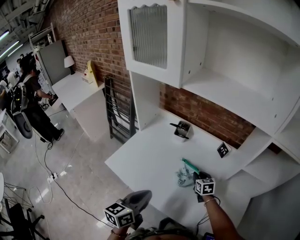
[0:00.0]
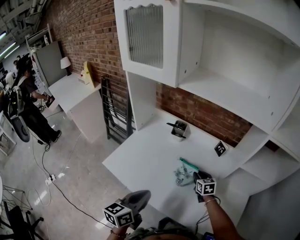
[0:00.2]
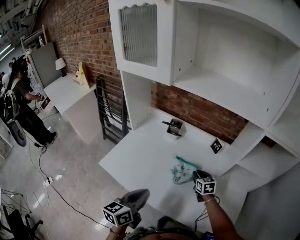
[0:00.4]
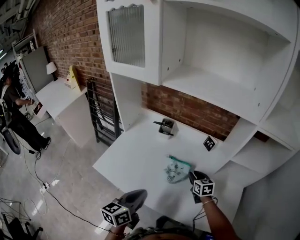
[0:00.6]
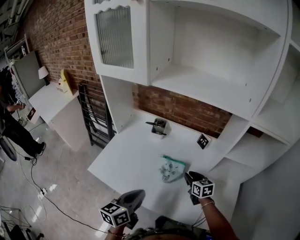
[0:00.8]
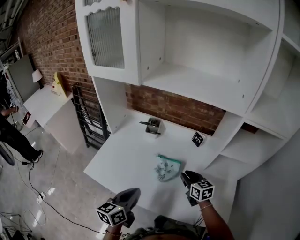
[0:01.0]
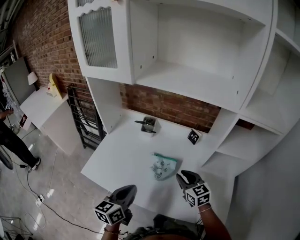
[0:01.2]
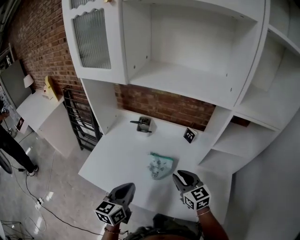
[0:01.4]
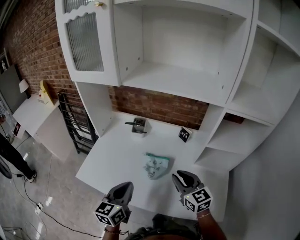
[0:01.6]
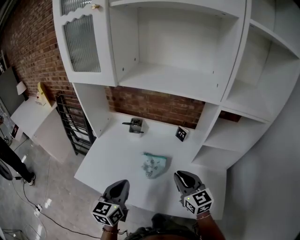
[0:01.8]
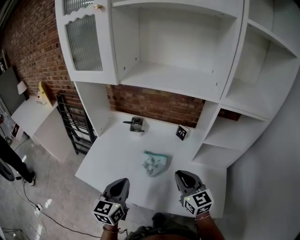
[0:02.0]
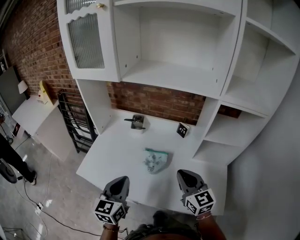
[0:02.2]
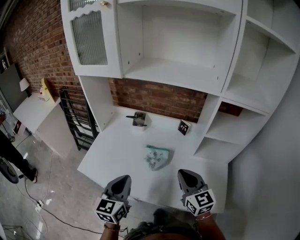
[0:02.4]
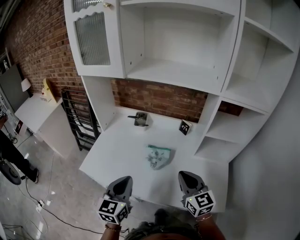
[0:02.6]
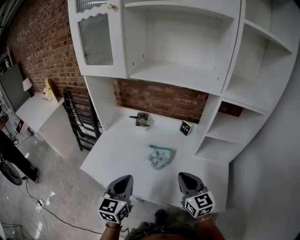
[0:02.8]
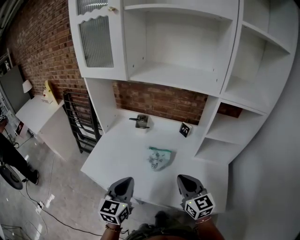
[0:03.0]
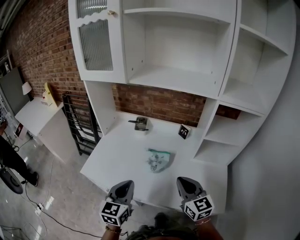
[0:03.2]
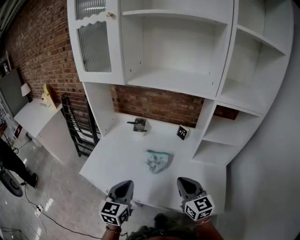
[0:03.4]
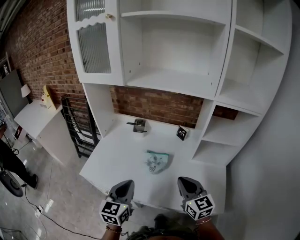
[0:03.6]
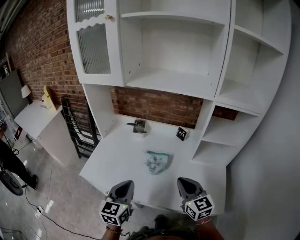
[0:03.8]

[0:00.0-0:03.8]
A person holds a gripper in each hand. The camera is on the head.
0:00.0 to 0:01.2: The right gripper goes some 15 cm upward and backward.
0:01.2 to 0:02.6: The right gripper shifts approximately 15 cm backward and upward. The left gripper shifts by approximately 5 cm, and swivels about 20 degrees.
0:02.6 to 0:03.8: The grippers move only a little.

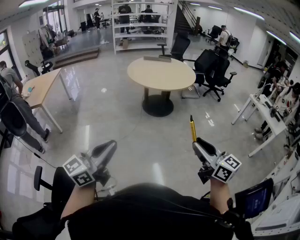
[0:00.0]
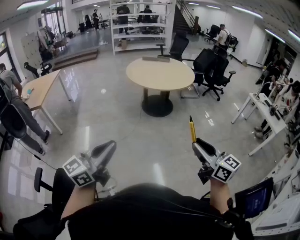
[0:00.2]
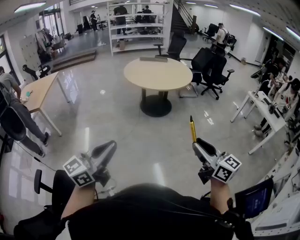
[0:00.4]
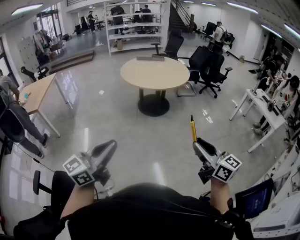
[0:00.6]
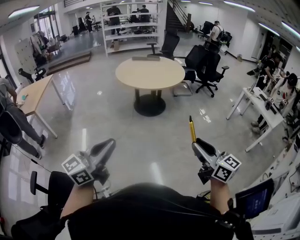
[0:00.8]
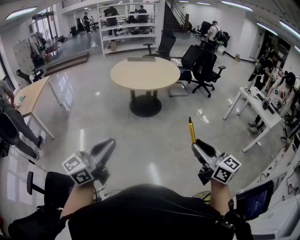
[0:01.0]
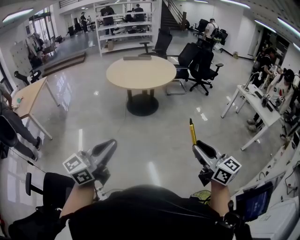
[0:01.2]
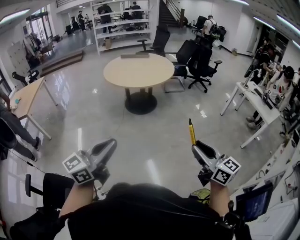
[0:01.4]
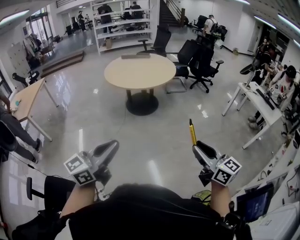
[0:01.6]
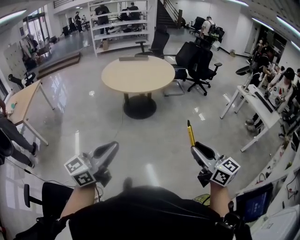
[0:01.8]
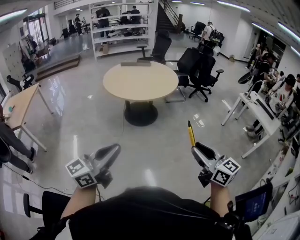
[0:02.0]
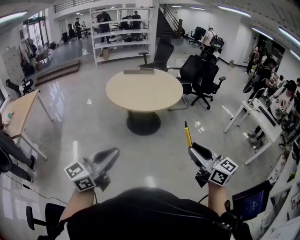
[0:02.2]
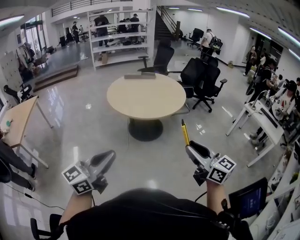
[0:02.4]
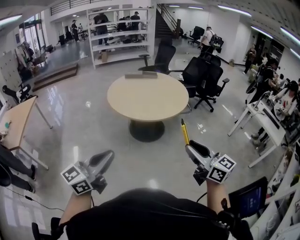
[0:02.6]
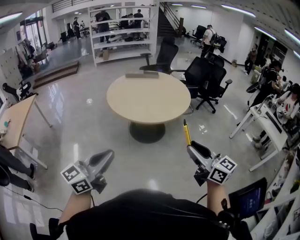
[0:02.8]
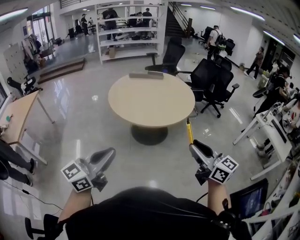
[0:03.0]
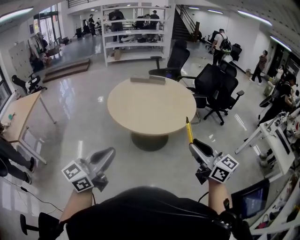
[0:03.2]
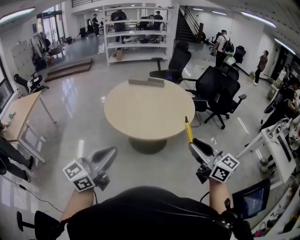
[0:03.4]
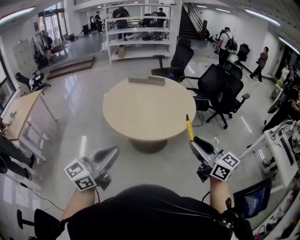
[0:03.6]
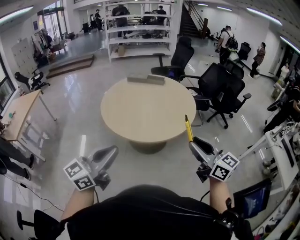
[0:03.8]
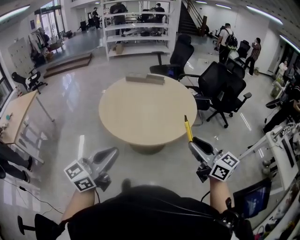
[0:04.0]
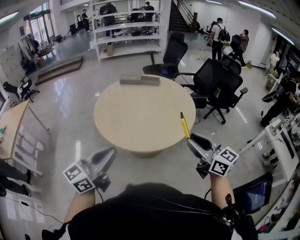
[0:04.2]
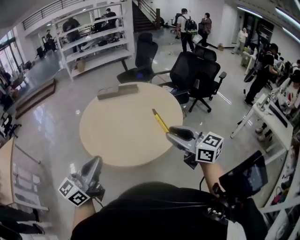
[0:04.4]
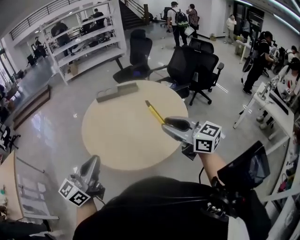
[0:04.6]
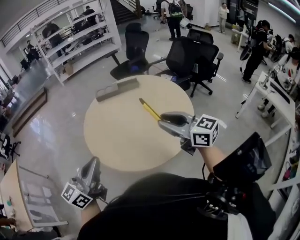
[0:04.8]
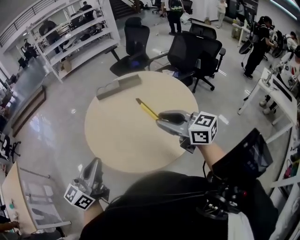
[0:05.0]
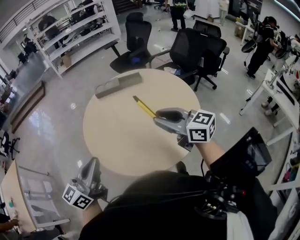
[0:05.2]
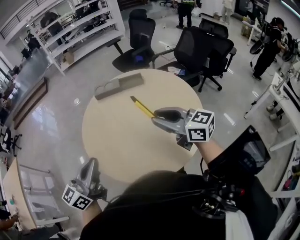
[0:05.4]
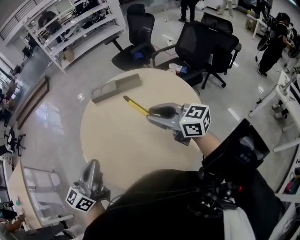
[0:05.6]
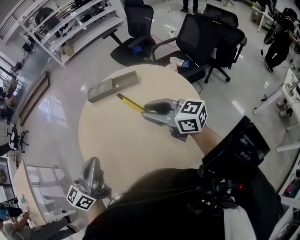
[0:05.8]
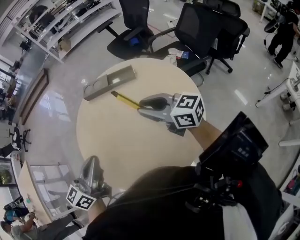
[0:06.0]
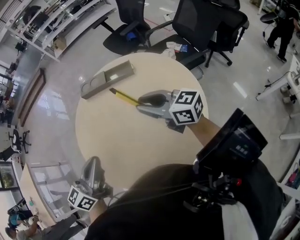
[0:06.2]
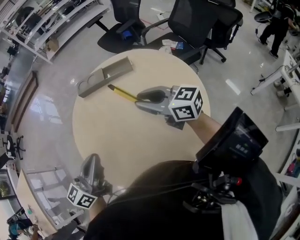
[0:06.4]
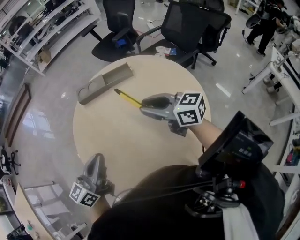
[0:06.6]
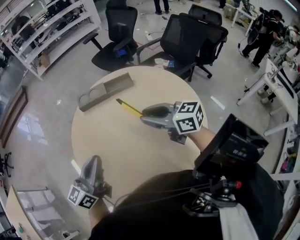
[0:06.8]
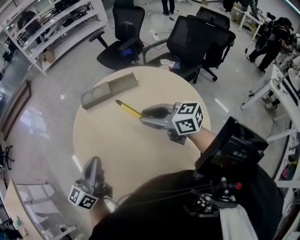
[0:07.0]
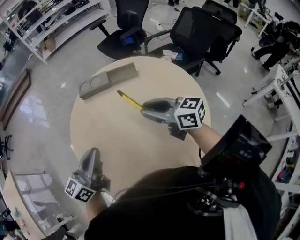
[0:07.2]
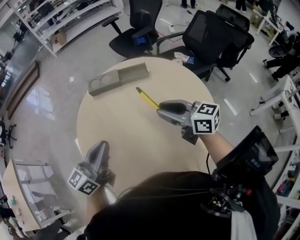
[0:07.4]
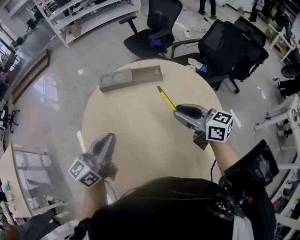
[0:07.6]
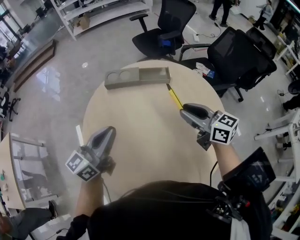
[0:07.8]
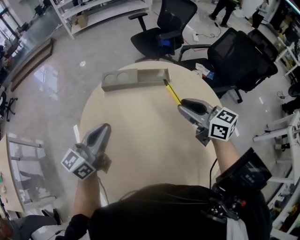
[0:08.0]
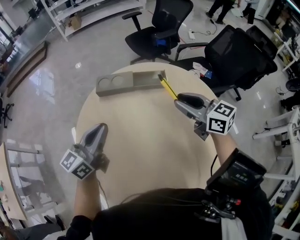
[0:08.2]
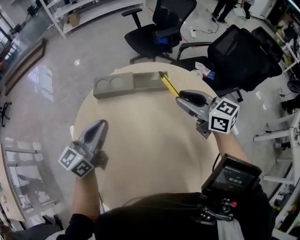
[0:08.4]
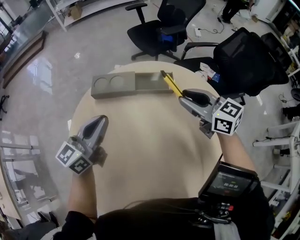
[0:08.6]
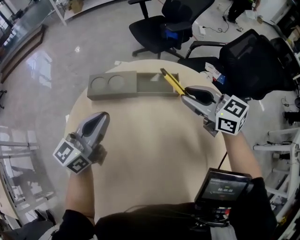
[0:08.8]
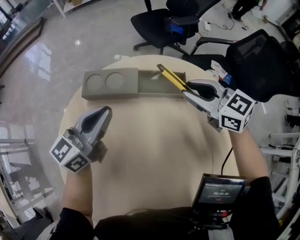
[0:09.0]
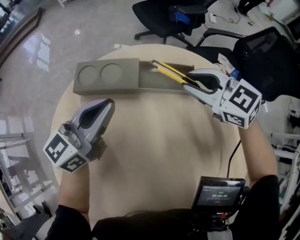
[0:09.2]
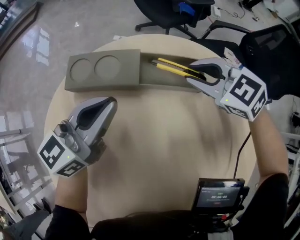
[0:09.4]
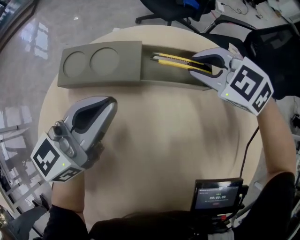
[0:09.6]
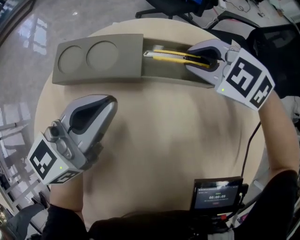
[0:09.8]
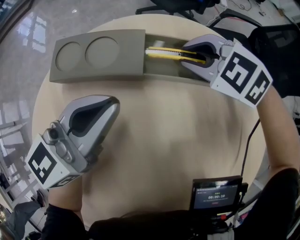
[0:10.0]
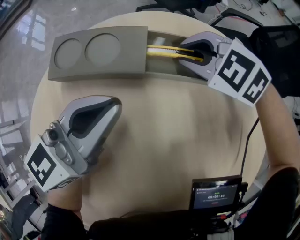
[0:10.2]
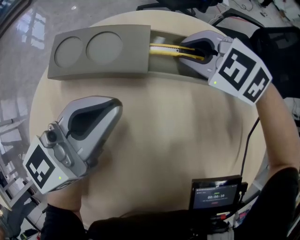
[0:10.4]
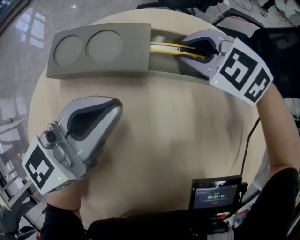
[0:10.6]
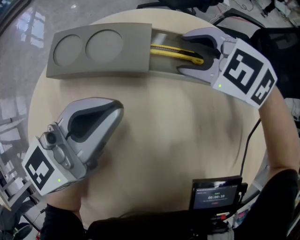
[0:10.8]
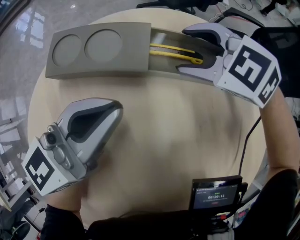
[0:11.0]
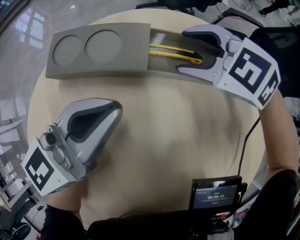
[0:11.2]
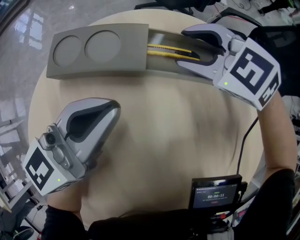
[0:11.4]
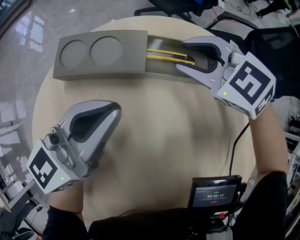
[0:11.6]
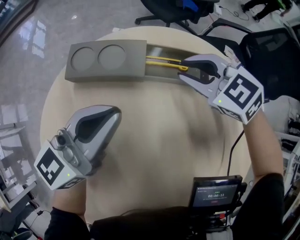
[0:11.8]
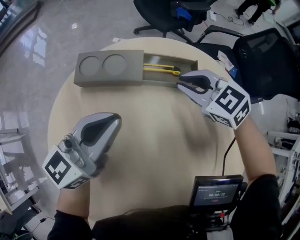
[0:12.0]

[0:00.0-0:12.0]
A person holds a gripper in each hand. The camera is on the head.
0:00.0 to 0:01.6: The right gripper shifts about 20 cm to the right; the left gripper goes about 25 cm to the right and forward.
0:01.6 to 0:03.0: The two grippers travel together, forward and to the left, some 50 cm.
0:03.0 to 0:04.4: Both grippers travel together forward, some 35 cm.
0:04.4 to 0:06.0: Both grippers are carried forward, roughly 40 cm.
0:06.0 to 0:07.6: The right gripper heads to the left, covering some 5 cm. Meanwhile the left gripper goes roughly 15 cm forward, to the left and downward.
0:07.6 to 0:09.0: The grippers both shift forward and downward by roughly 35 cm. The right gripper changes its angle by approximately 30 degrees.
0:09.0 to 0:10.4: The left gripper is displaced downward by approximately 10 cm. Meanwhile the right gripper goes roughly 20 cm downward and forward, and points its fingers roughly 30 degrees further downward.
0:10.4 to 0:12.0: The right gripper shifts some 10 cm backward and upward, swivels about 20 degrees, and opens, then closes again. Meanwhile the left gripper goes about 10 cm upward and backward.

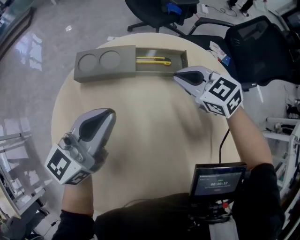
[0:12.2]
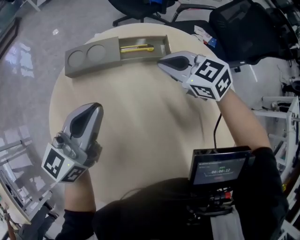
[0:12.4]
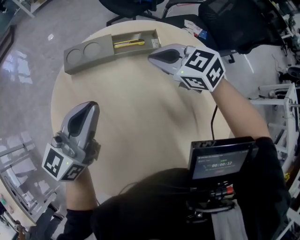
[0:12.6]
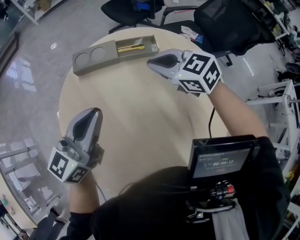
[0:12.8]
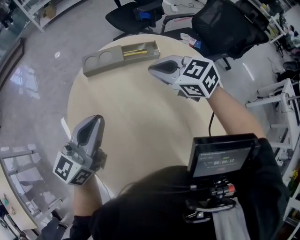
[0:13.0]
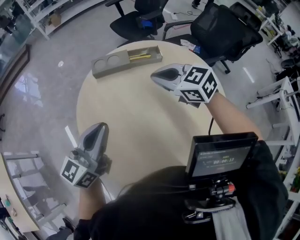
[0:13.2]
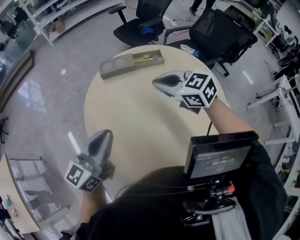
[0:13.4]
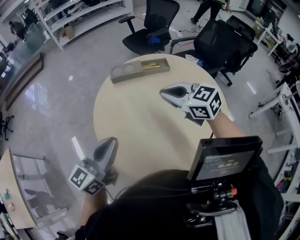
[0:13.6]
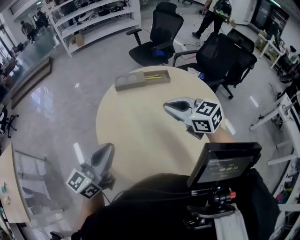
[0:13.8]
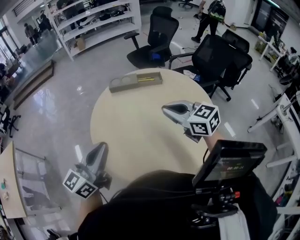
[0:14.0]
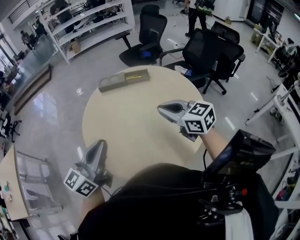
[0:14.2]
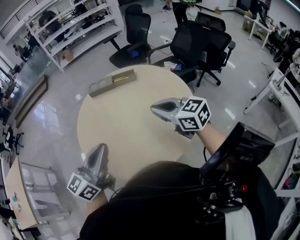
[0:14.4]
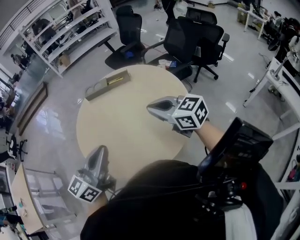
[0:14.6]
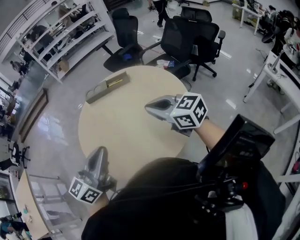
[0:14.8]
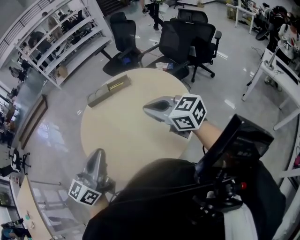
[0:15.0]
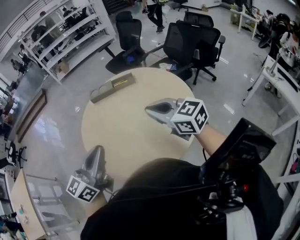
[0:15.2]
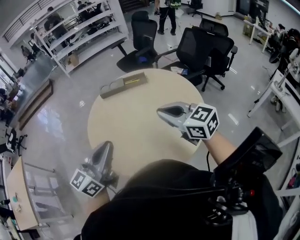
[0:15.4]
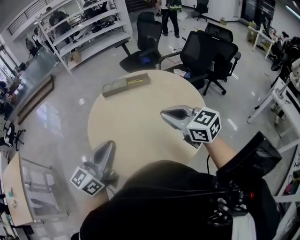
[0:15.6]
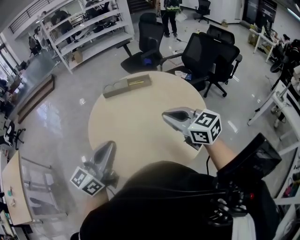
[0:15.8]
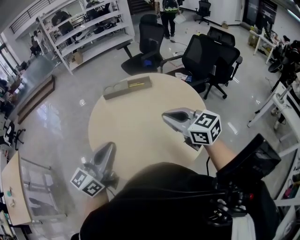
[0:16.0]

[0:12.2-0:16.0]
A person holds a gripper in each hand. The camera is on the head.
0:12.2 to 0:13.4: Both grippers travel together backward, upward and to the left, some 40 cm.
0:13.4 to 0:14.8: The grippers both shift backward and to the right by about 35 cm.
0:14.8 to 0:16.0: Both grippers move to the left, some 10 cm.

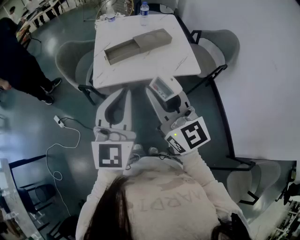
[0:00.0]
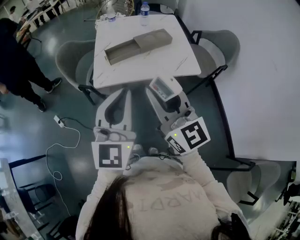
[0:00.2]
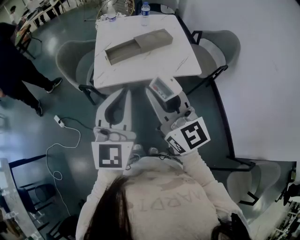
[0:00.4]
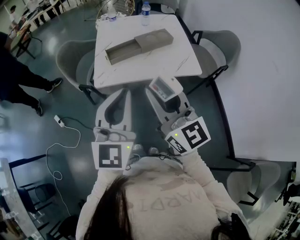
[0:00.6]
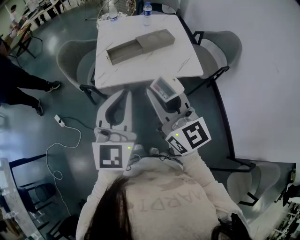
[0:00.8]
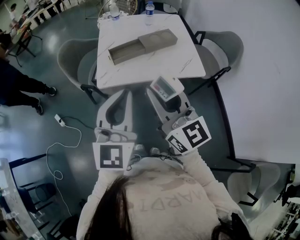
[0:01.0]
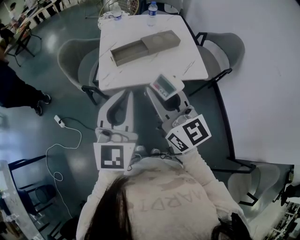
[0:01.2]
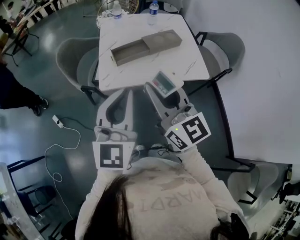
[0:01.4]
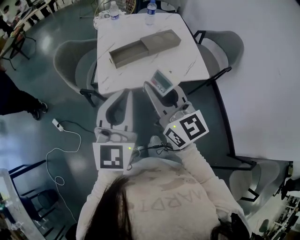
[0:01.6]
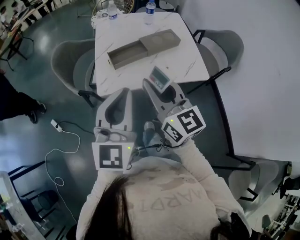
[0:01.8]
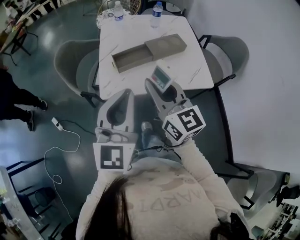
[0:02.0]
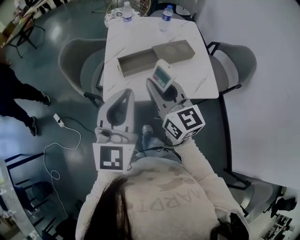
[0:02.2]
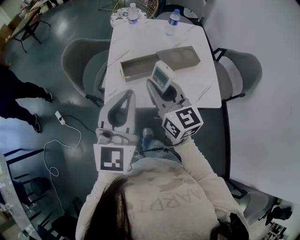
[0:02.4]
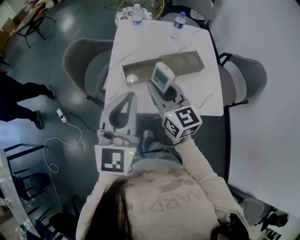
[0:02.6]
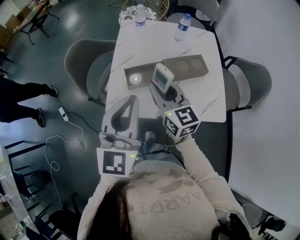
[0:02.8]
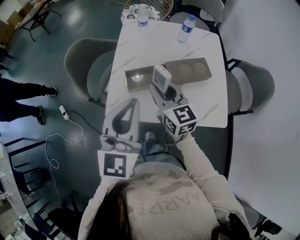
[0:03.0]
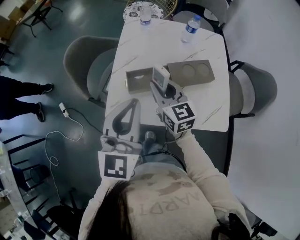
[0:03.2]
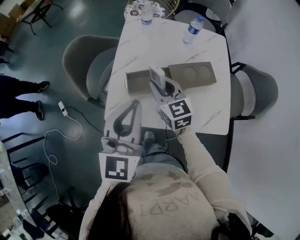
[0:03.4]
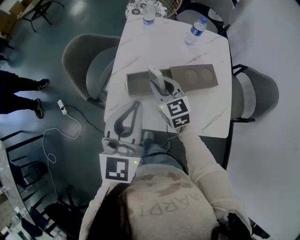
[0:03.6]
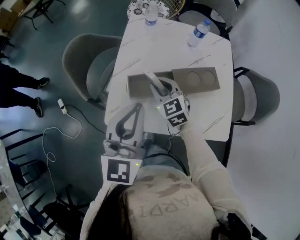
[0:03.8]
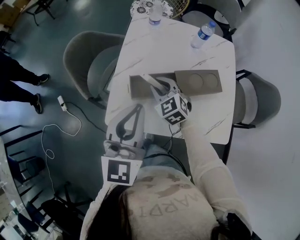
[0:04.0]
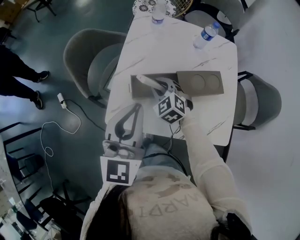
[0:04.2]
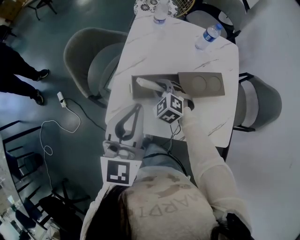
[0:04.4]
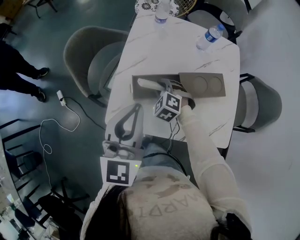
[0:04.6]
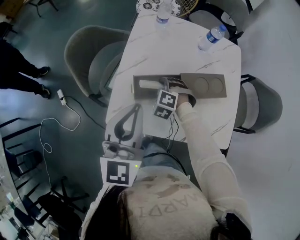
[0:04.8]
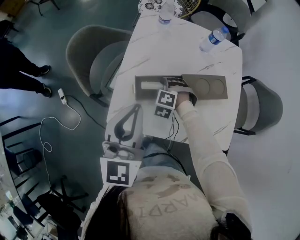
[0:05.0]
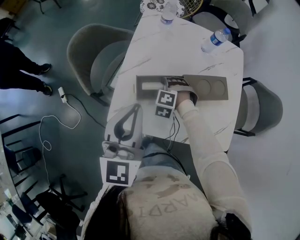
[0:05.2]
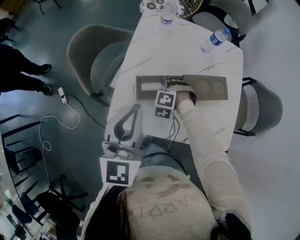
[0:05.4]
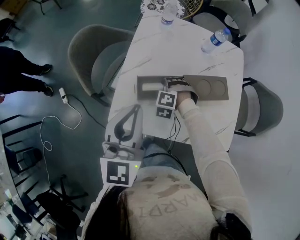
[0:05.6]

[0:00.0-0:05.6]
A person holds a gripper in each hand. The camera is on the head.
0:00.0 to 0:01.4: The grippers both shift forward and to the left by some 10 cm.
0:01.4 to 0:02.8: The left gripper moves forward, approximately 20 cm. Meanwhile the right gripper goes roughly 30 cm forward and downward.
0:02.8 to 0:04.2: The right gripper travels downward and forward by approximately 20 cm, and tips its fingers downward by approximately 30 degrees. The left gripper shifts approximately 10 cm forward and downward.
0:04.2 to 0:05.6: The right gripper is displaced downward by approximately 5 cm, and turns by approximately 40 degrees.
